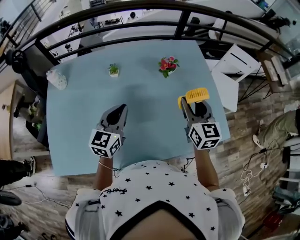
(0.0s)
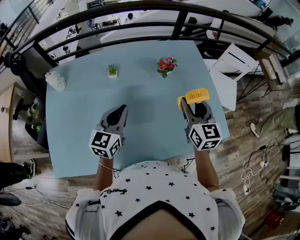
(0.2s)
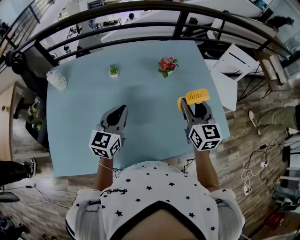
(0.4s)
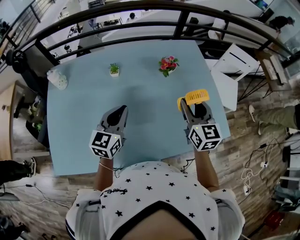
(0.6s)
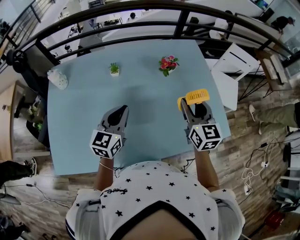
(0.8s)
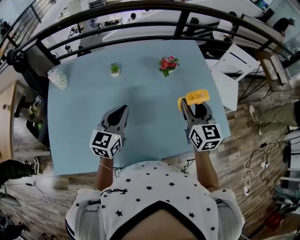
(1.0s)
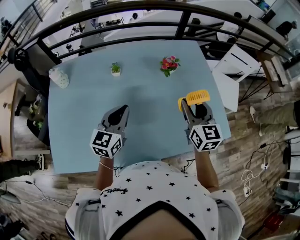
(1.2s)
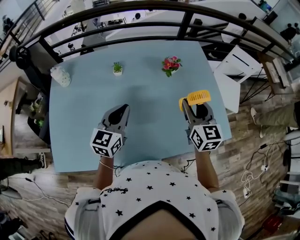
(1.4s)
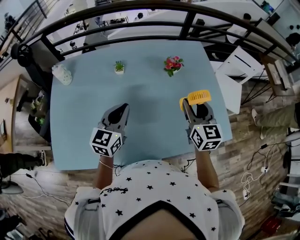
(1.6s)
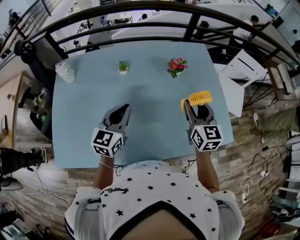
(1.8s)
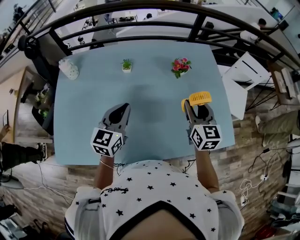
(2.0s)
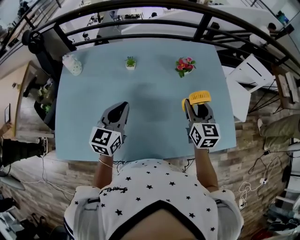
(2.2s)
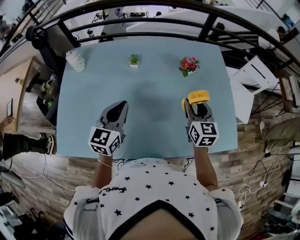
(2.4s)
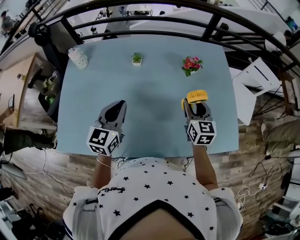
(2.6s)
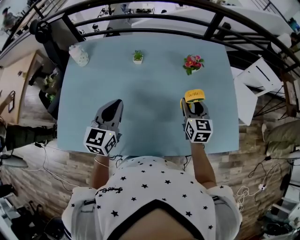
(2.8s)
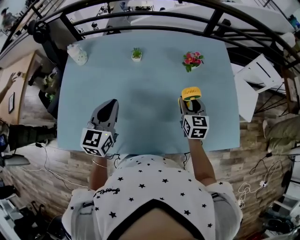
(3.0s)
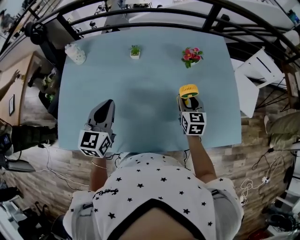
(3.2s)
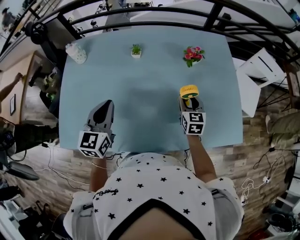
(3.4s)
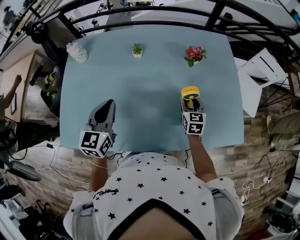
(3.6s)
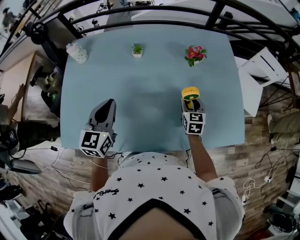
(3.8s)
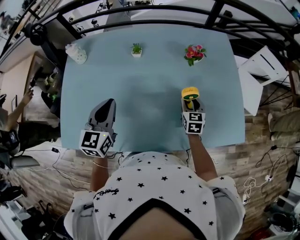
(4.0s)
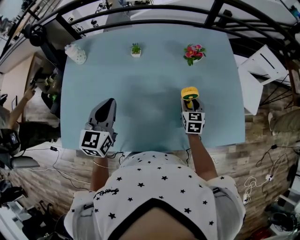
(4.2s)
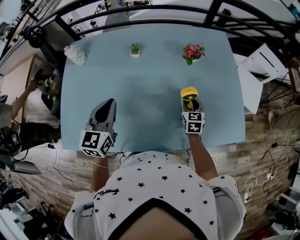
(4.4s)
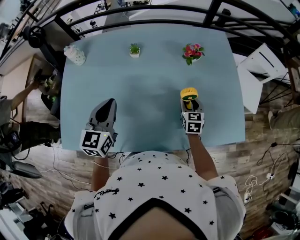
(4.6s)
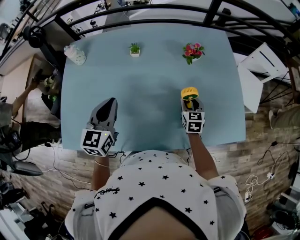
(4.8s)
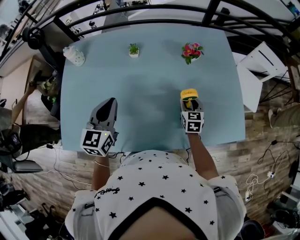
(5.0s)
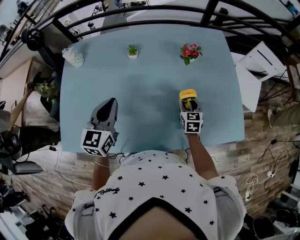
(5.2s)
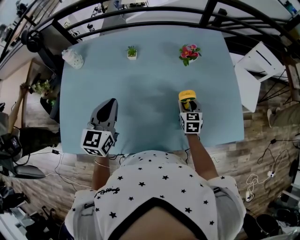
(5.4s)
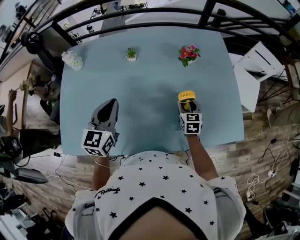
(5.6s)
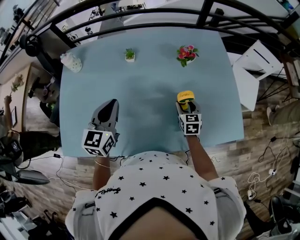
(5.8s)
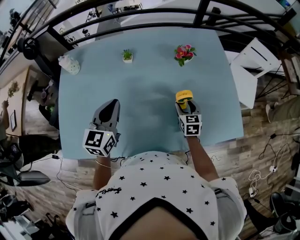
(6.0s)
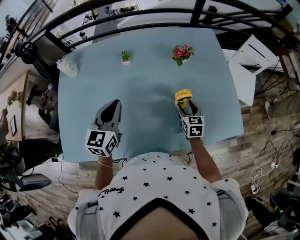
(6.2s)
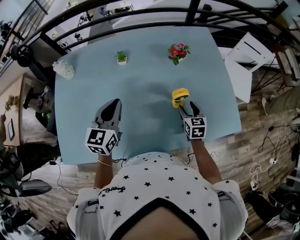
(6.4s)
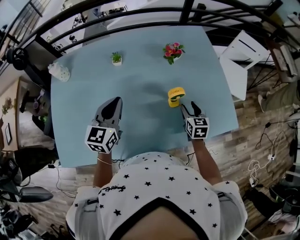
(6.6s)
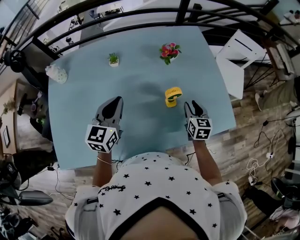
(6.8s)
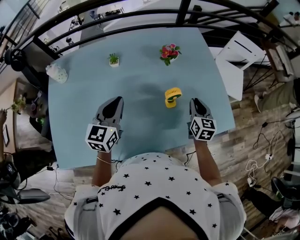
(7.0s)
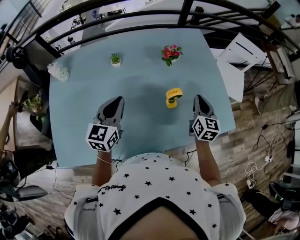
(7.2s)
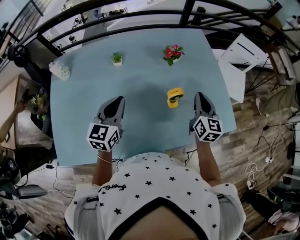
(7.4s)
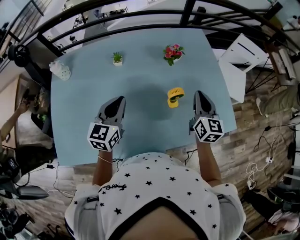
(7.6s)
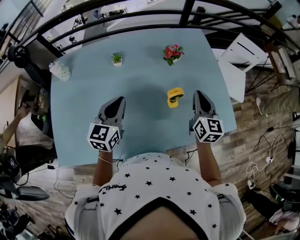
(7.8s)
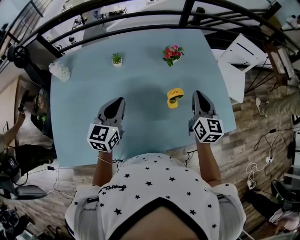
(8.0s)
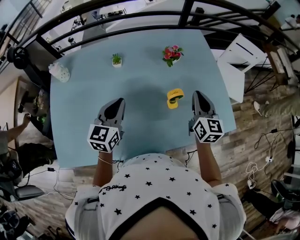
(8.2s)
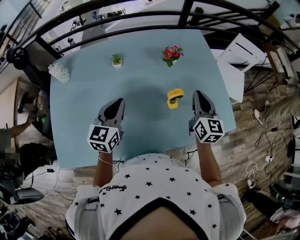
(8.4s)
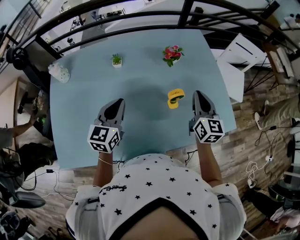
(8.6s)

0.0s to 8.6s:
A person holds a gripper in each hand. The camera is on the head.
0.0s to 1.4s: There are only small adjustments of the grippers.
1.4s to 2.8s: The right gripper goes approximately 10 cm downward. Meanwhile the left gripper moves to the left, about 5 cm.
2.8s to 4.4s: The right gripper goes roughly 10 cm downward.
4.4s to 5.8s: The grippers make only small movements.
5.8s to 7.2s: The right gripper travels upward and to the right by about 15 cm, swivels roughly 20 degrees, and closes, while the left gripper heads to the right, covering approximately 5 cm.
7.2s to 8.6s: The right gripper moves upward, roughly 5 cm.

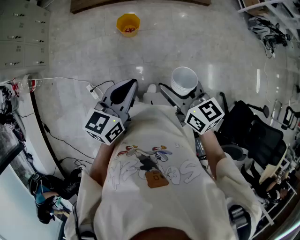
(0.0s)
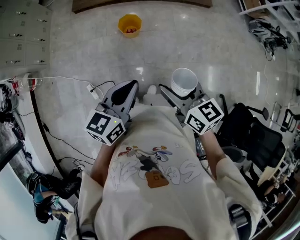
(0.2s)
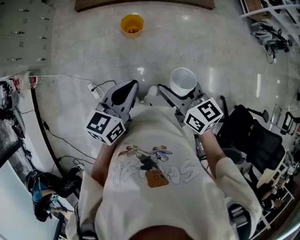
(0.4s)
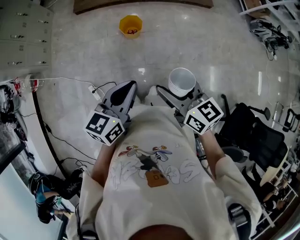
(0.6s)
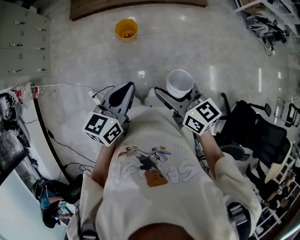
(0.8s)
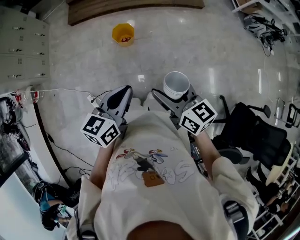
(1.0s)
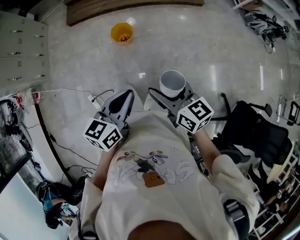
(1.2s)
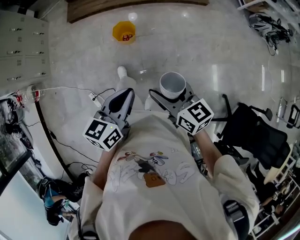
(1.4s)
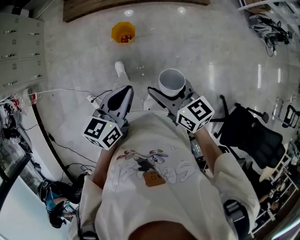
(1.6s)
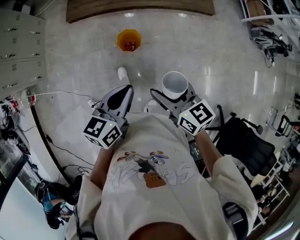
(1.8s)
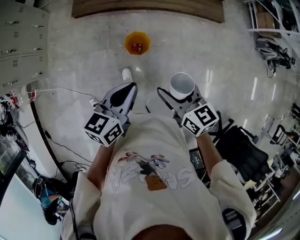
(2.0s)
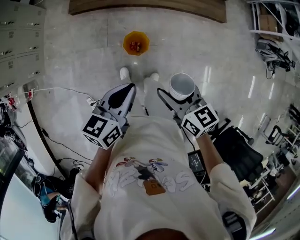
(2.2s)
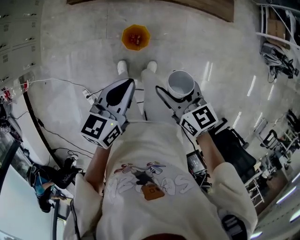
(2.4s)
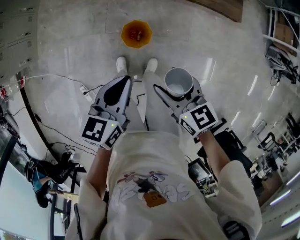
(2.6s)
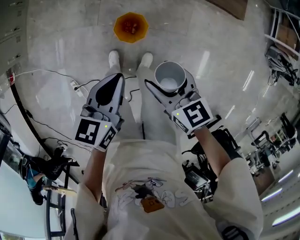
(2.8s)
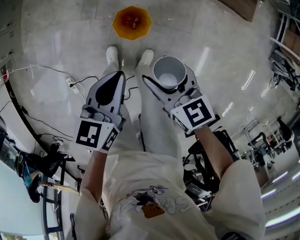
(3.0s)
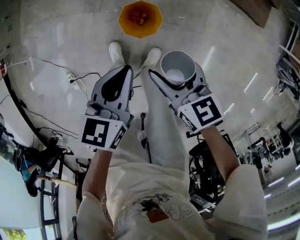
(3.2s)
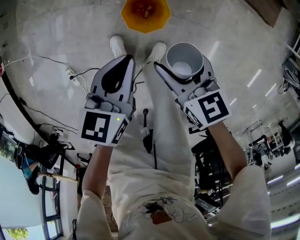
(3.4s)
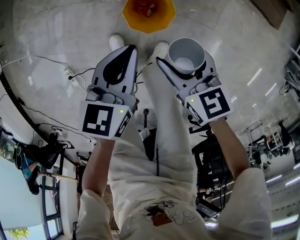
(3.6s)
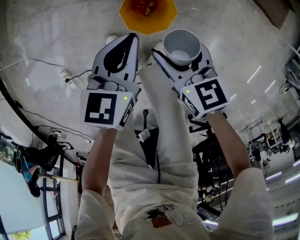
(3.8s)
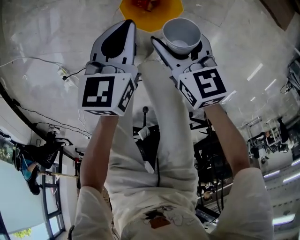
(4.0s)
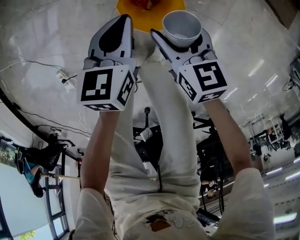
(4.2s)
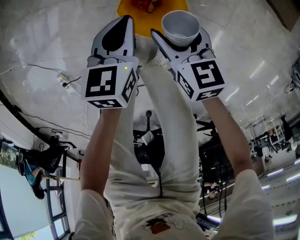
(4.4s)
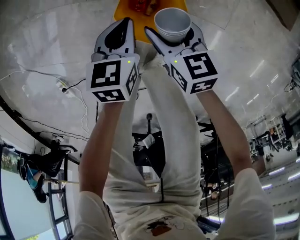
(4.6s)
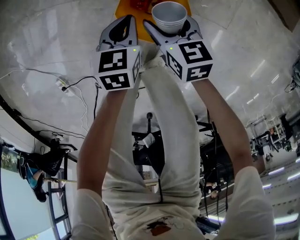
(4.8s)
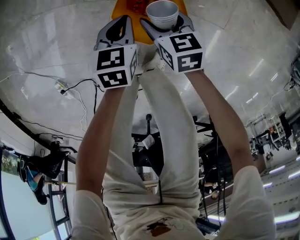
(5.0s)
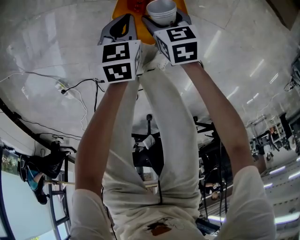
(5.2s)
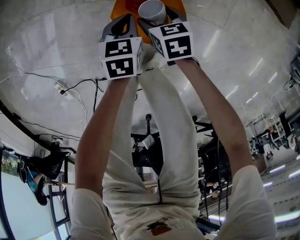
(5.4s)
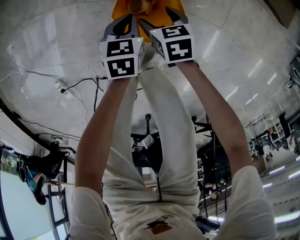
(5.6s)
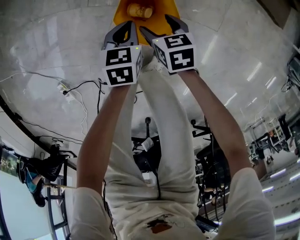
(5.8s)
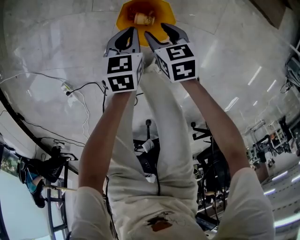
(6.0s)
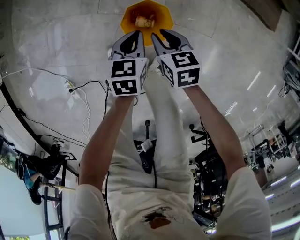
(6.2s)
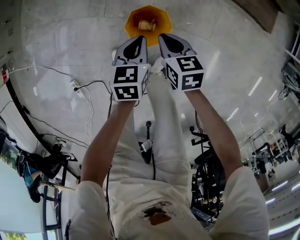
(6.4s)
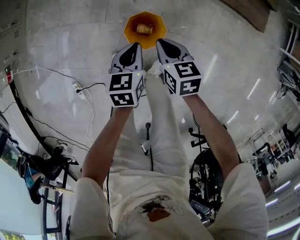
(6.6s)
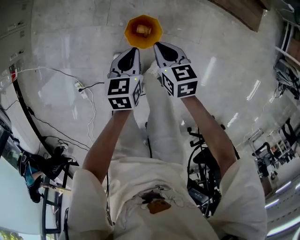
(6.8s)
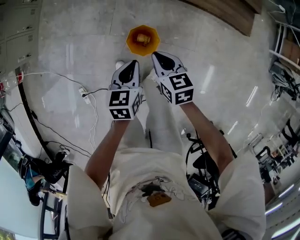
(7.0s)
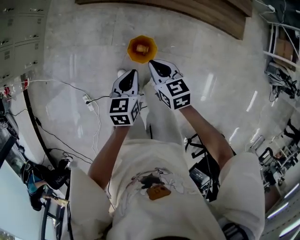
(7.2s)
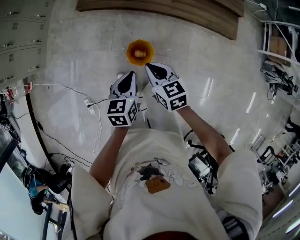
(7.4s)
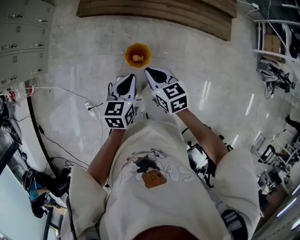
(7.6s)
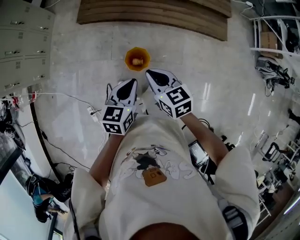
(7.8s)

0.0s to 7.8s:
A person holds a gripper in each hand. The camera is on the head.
0.0s to 1.6s: Both grippers move forward, some 15 cm.
1.6s to 3.2s: The grippers both shift forward and downward by about 60 cm. The left gripper swivels roughly 30 degrees. Meanwhile the right gripper turns by some 30 degrees.
3.2s to 4.6s: Both grippers travel together downward, about 35 cm.
4.6s to 6.2s: The two grippers go roughly 10 cm upward. The right gripper closes.
6.2s to 7.8s: The grippers both shift upward by approximately 60 cm. The left gripper rotates approximately 20 degrees. The right gripper rotates some 20 degrees.

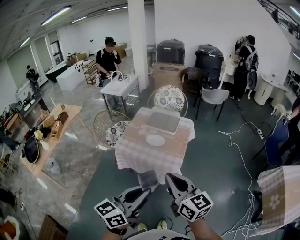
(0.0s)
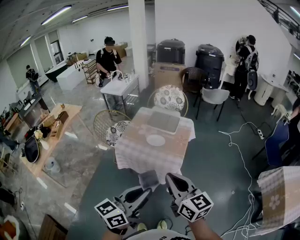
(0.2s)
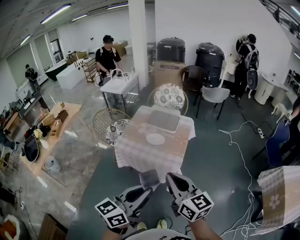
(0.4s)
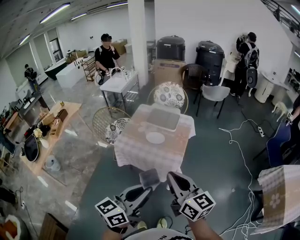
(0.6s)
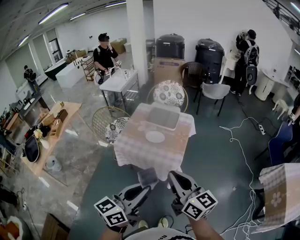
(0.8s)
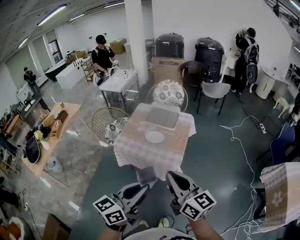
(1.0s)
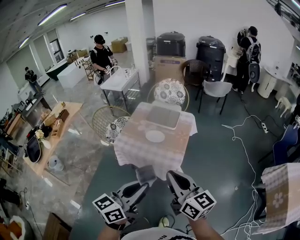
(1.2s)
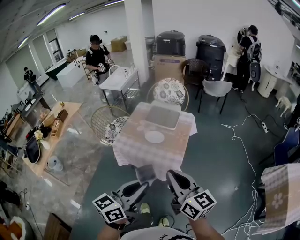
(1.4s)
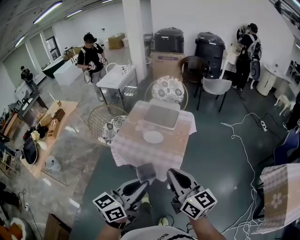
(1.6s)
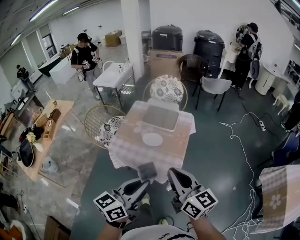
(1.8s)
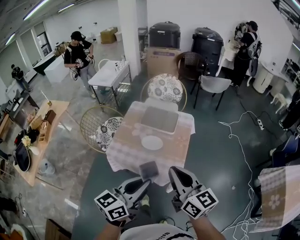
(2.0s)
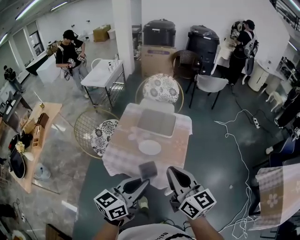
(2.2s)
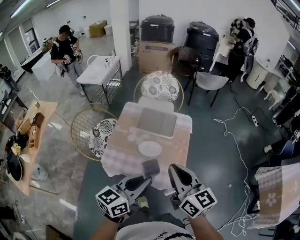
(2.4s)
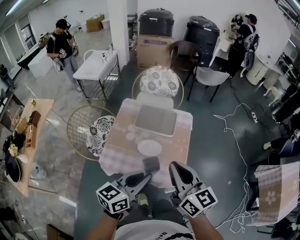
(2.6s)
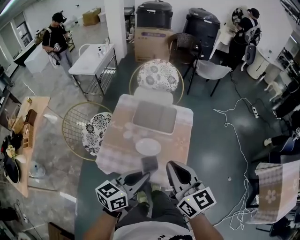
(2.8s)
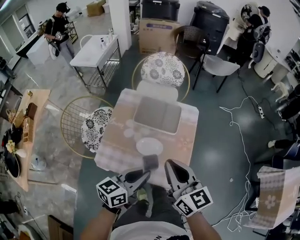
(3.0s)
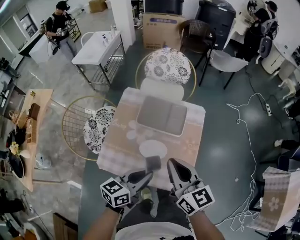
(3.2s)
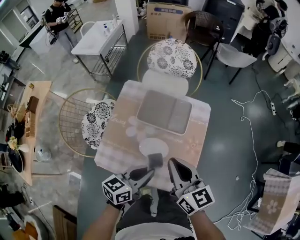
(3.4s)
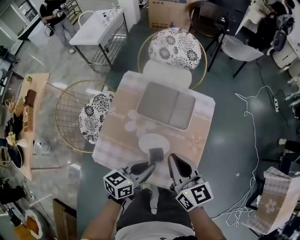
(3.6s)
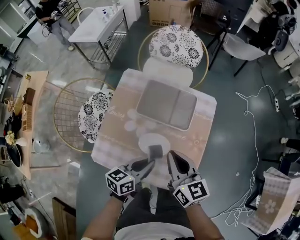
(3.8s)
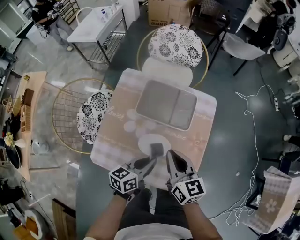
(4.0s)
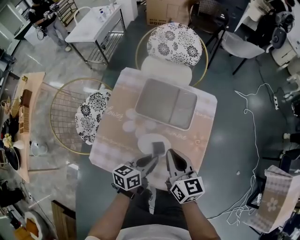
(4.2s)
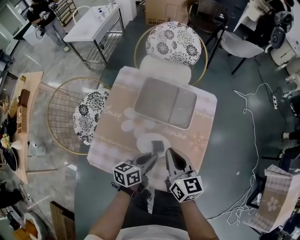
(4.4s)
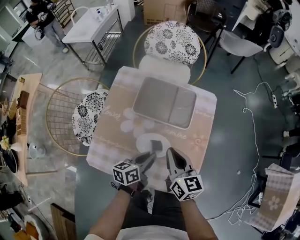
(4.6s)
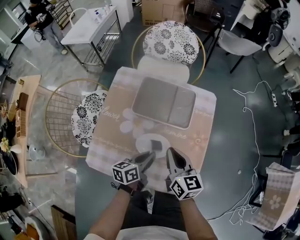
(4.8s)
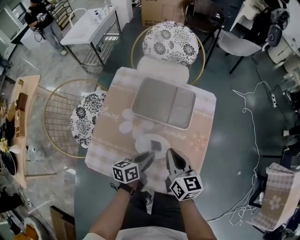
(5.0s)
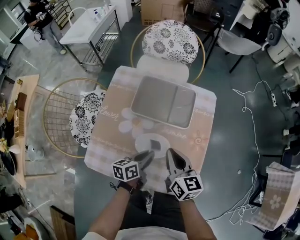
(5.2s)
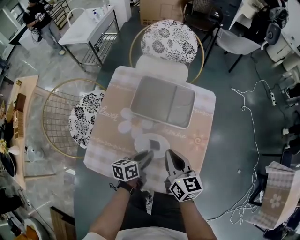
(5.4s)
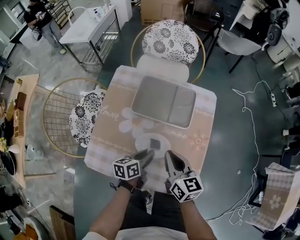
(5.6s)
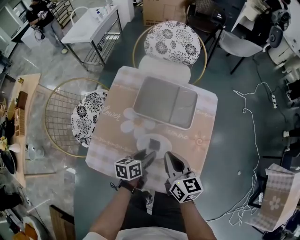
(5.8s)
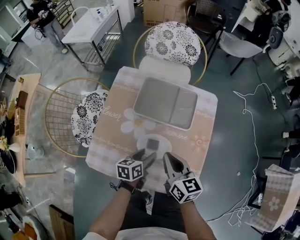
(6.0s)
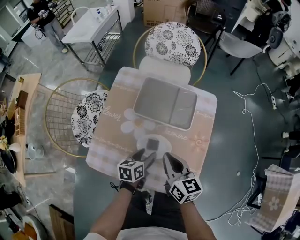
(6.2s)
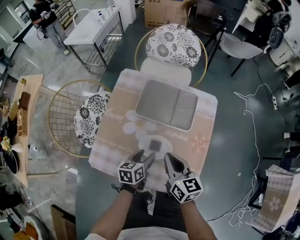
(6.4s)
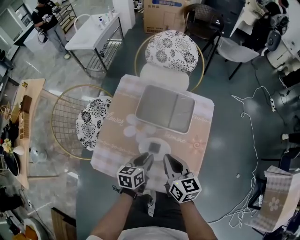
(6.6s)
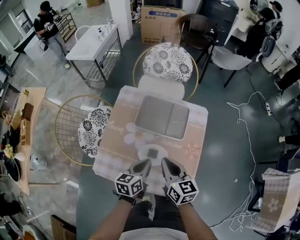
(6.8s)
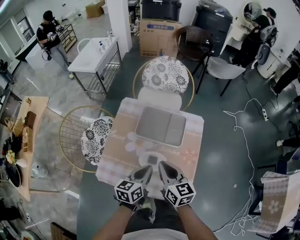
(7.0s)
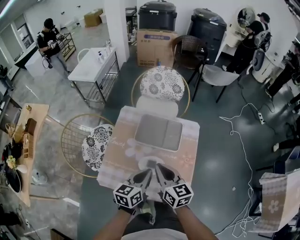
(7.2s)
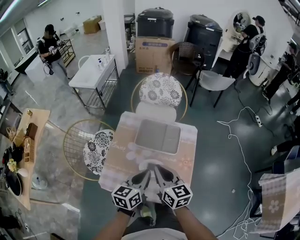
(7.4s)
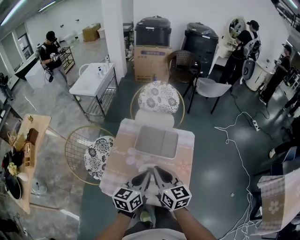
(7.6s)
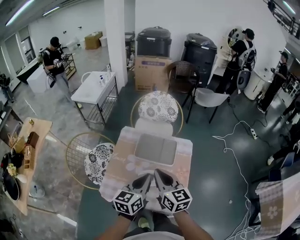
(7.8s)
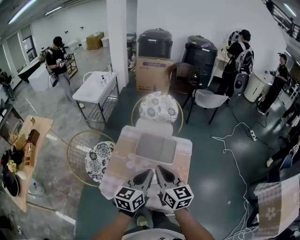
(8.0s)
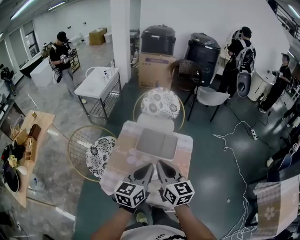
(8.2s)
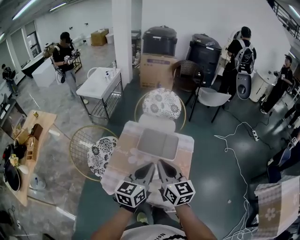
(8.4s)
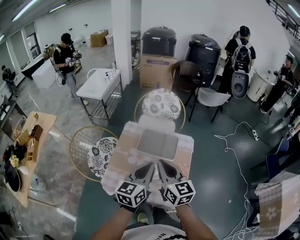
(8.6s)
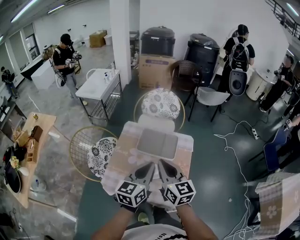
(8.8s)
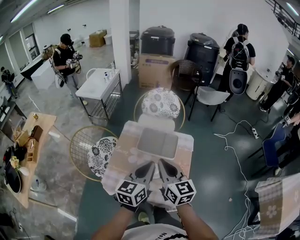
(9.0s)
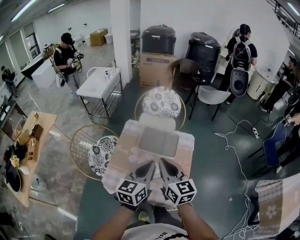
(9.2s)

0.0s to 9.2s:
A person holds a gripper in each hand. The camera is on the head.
0.0s to 1.6s: The grippers both shift forward by about 10 cm.
1.6s to 3.0s: The right gripper travels forward by about 30 cm; the left gripper shifts approximately 35 cm forward and downward.
3.0s to 4.6s: The grippers both shift downward and forward by some 25 cm. The left gripper changes its angle by approximately 20 degrees.
4.6s to 6.2s: The left gripper travels downward by roughly 5 cm, and opens up.
6.2s to 7.6s: The right gripper heads upward, covering approximately 20 cm. The left gripper goes some 30 cm upward, turns by some 30 degrees, and closes up.
7.6s to 9.2s: The two grippers go roughly 10 cm upward.
